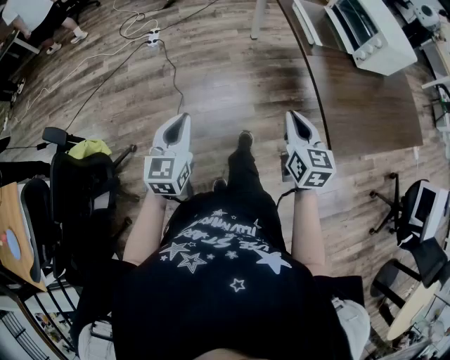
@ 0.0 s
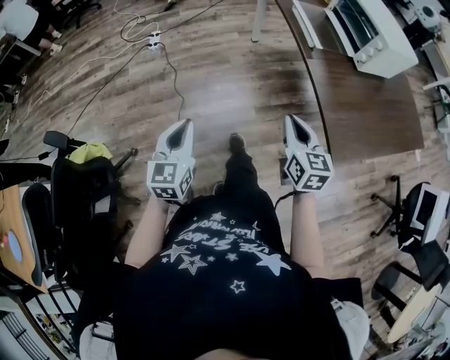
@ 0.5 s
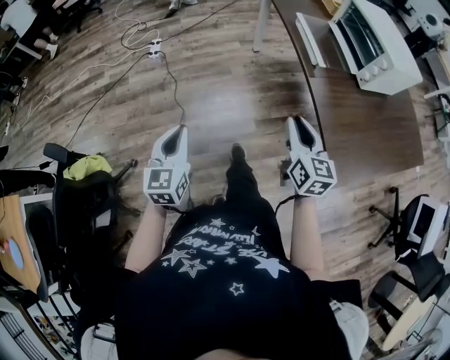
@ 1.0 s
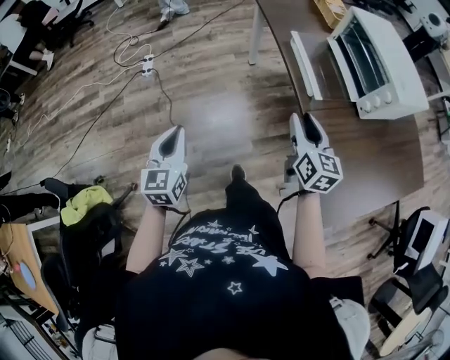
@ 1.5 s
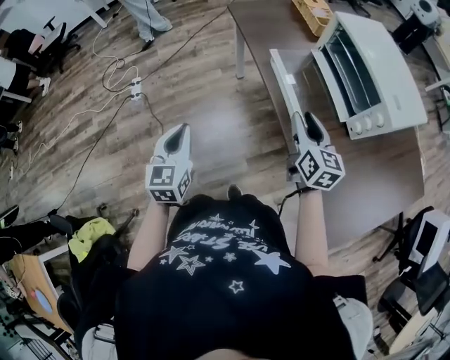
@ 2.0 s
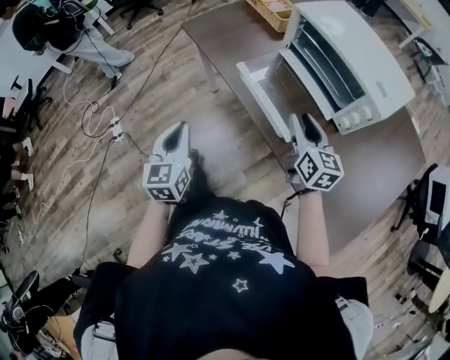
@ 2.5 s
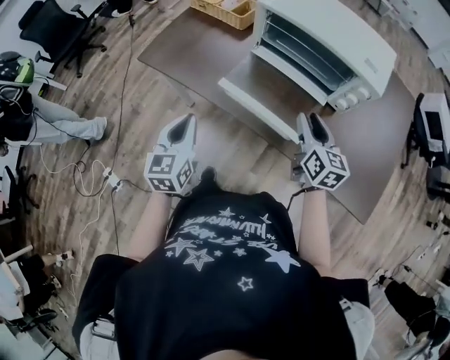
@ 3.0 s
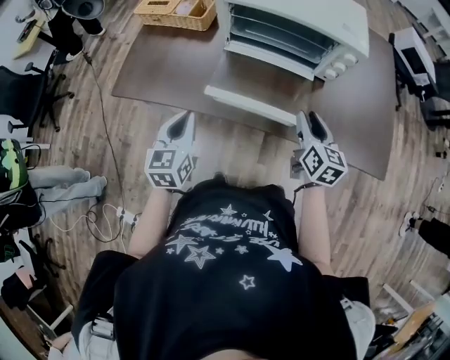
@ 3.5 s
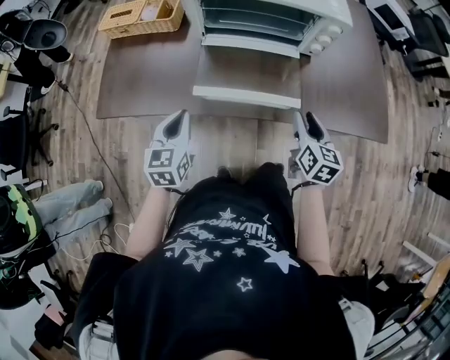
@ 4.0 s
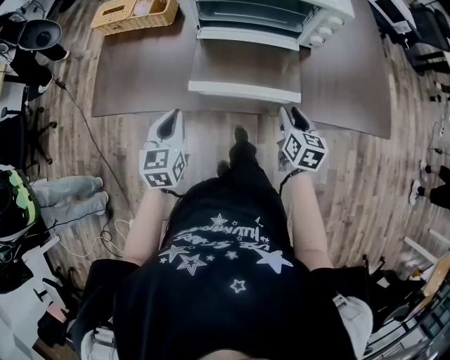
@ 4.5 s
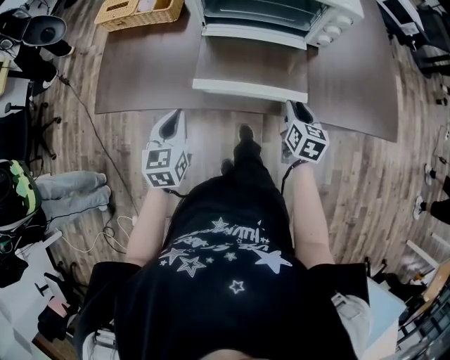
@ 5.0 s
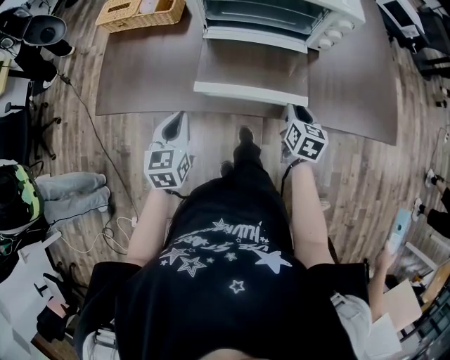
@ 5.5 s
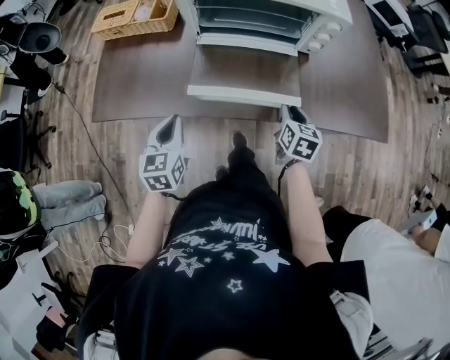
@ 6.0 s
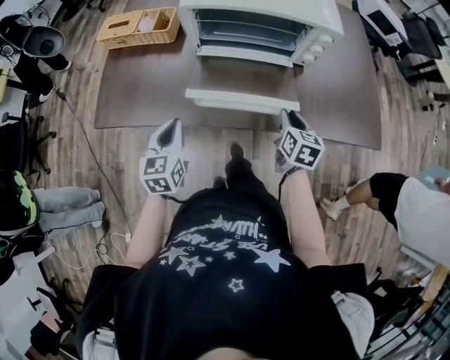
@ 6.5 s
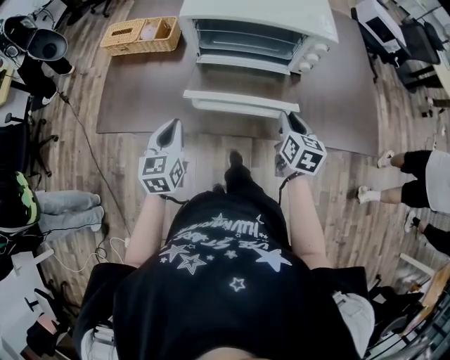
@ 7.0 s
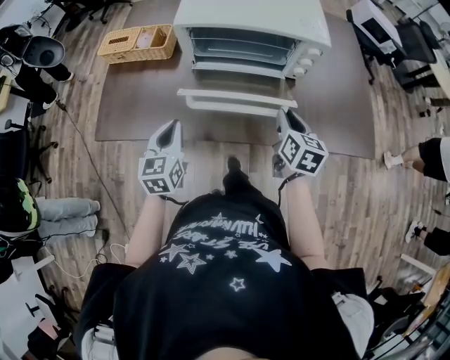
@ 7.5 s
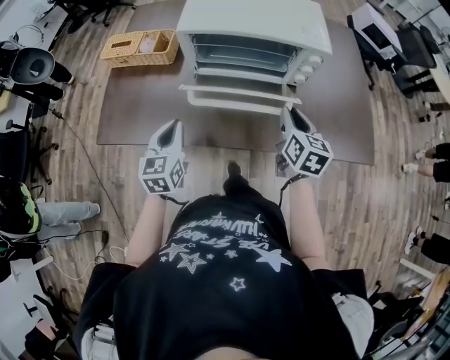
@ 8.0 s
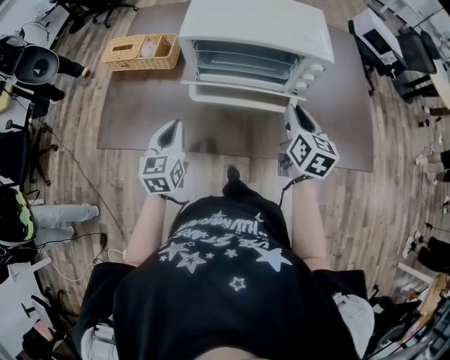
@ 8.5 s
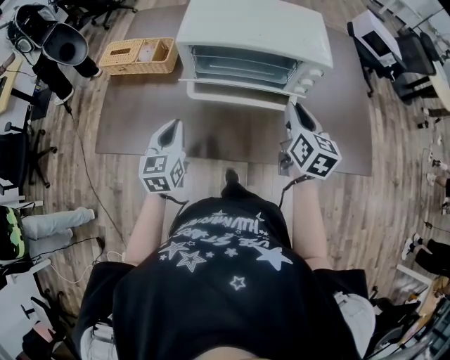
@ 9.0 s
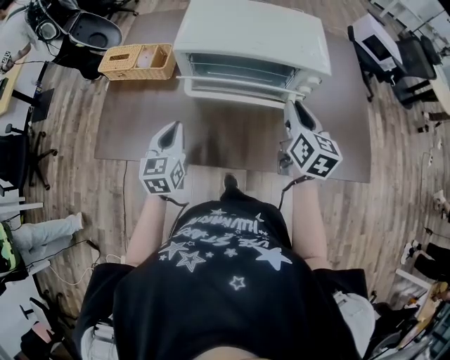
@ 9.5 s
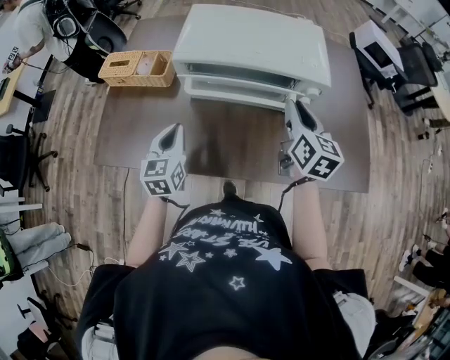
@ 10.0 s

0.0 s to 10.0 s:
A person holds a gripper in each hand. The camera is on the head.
0.0 to 2.0 s: The two grippers travel together, forward, approximately 40 cm. The right gripper opens its fingers.
2.0 to 4.0 s: The right gripper goes some 10 cm downward, and changes its angle by about 70 degrees, while the left gripper moves some 40 cm, and rotates approximately 70 degrees.
4.0 to 6.0 s: The right gripper goes approximately 5 cm downward.
6.0 to 8.0 s: The left gripper heads forward and upward, covering some 10 cm. The right gripper travels upward by about 15 cm.
8.0 to 10.0 s: The left gripper goes roughly 10 cm forward. Meanwhile the right gripper is displaced forward and upward by approximately 10 cm.

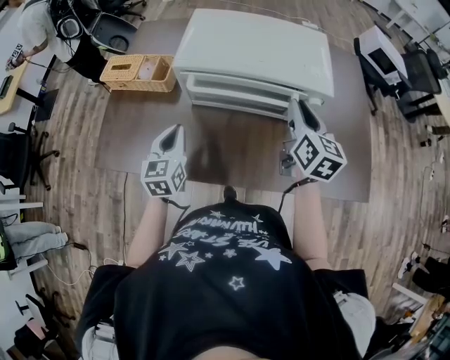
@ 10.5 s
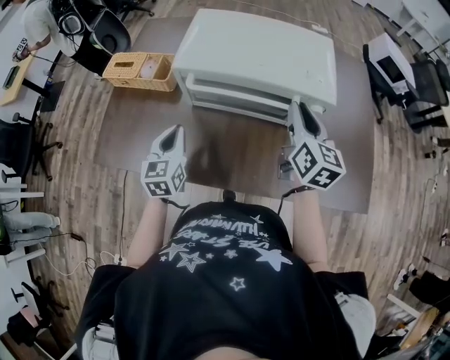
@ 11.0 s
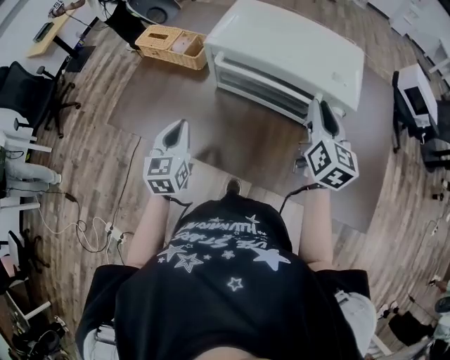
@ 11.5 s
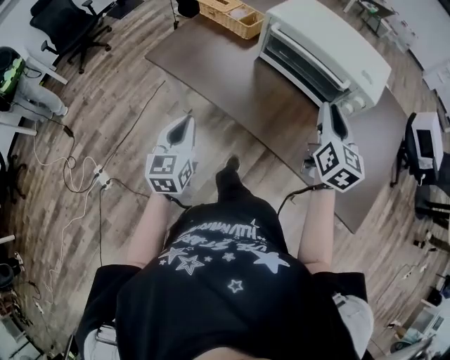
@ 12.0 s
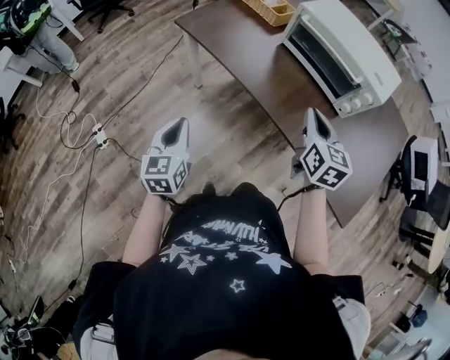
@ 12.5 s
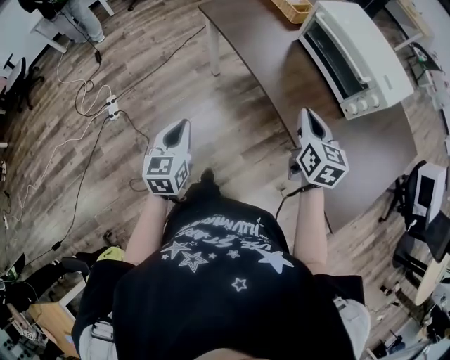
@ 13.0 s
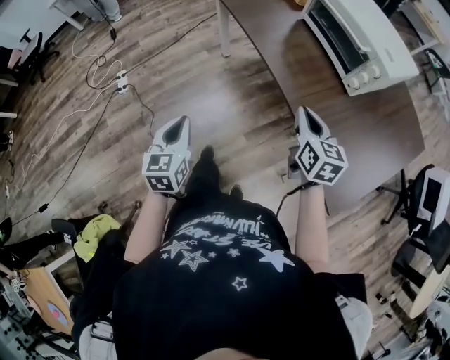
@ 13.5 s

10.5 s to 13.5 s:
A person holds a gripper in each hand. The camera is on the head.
10.5 to 12.0 s: The left gripper heads backward, covering about 25 cm, and swivels roughly 30 degrees. Meanwhile the right gripper travels backward by about 10 cm, and rotates some 20 degrees.
12.0 to 13.5 s: The left gripper moves approximately 35 cm, and rotates about 30 degrees. The right gripper changes place by about 20 cm, changes its angle by some 40 degrees, and closes its fingers.

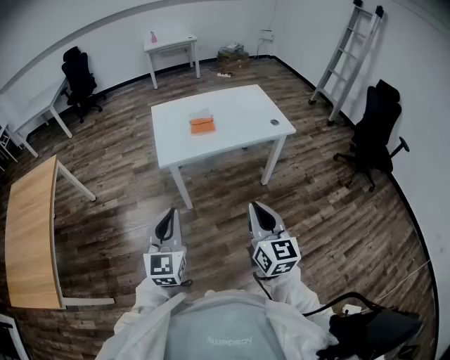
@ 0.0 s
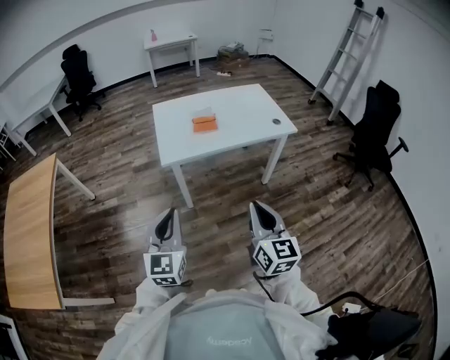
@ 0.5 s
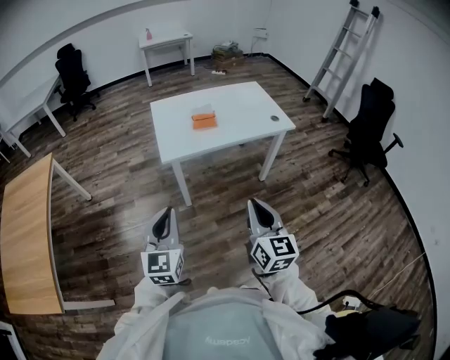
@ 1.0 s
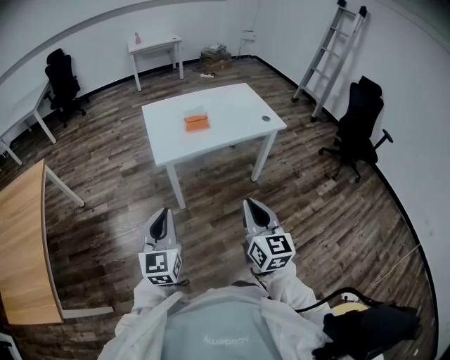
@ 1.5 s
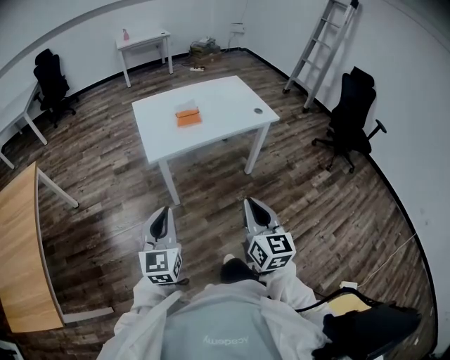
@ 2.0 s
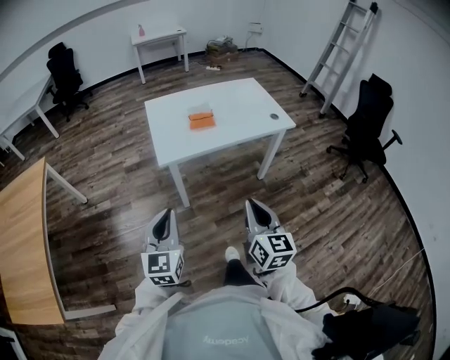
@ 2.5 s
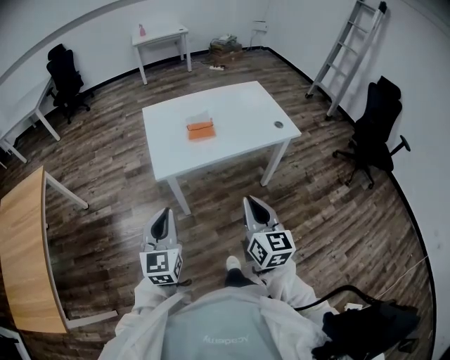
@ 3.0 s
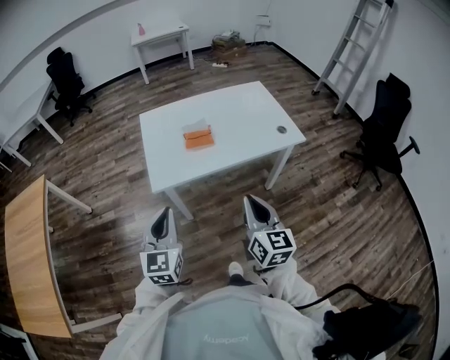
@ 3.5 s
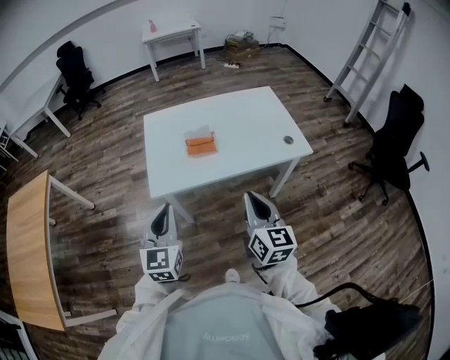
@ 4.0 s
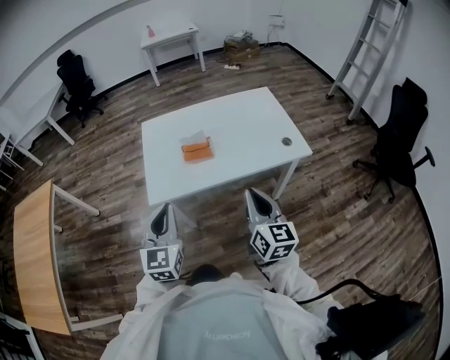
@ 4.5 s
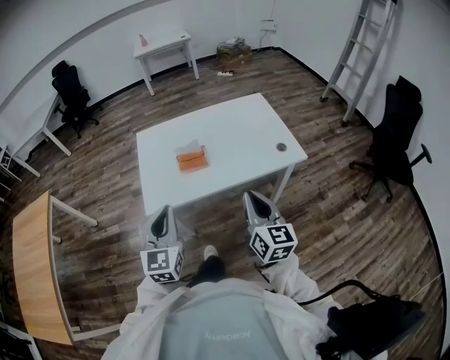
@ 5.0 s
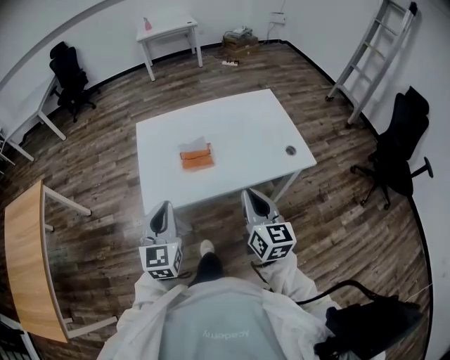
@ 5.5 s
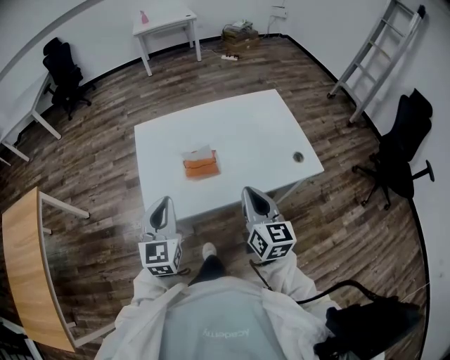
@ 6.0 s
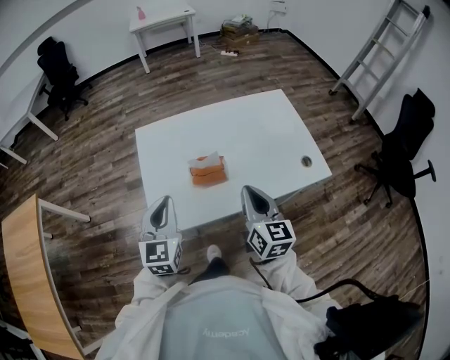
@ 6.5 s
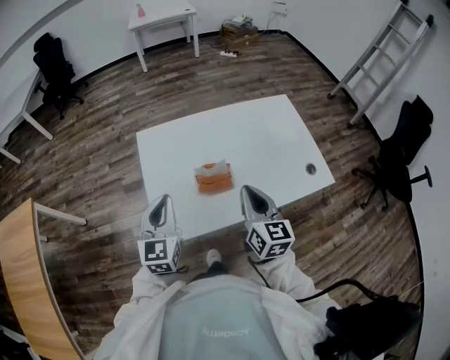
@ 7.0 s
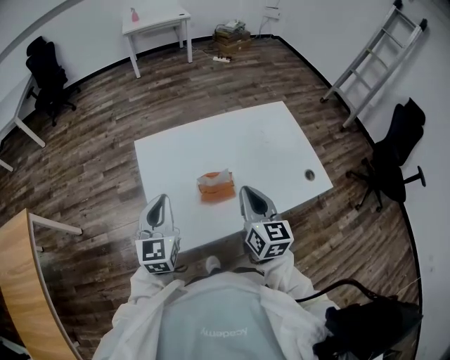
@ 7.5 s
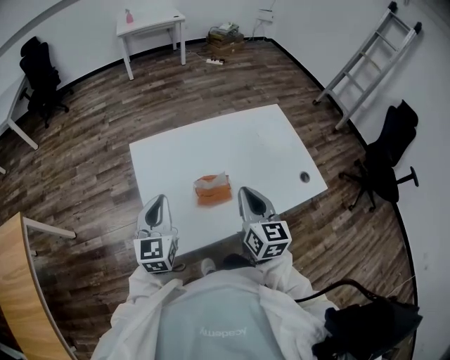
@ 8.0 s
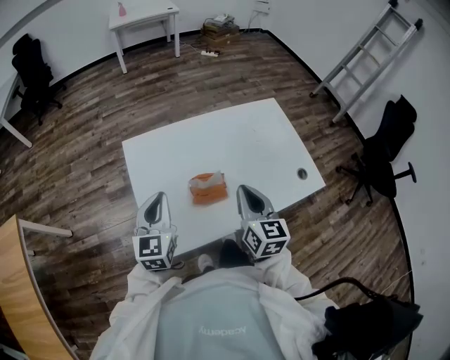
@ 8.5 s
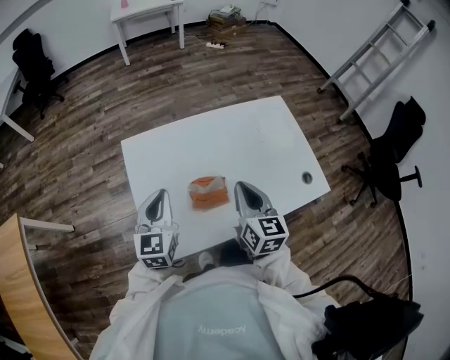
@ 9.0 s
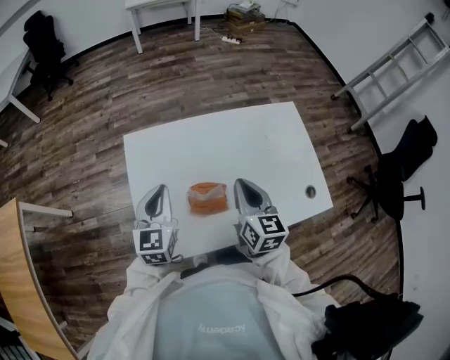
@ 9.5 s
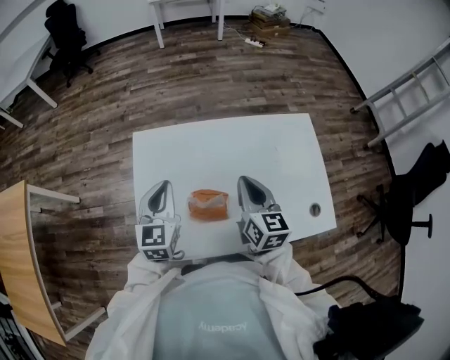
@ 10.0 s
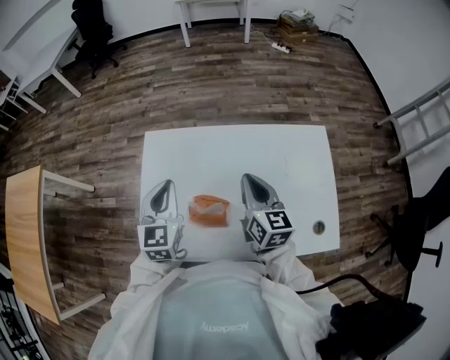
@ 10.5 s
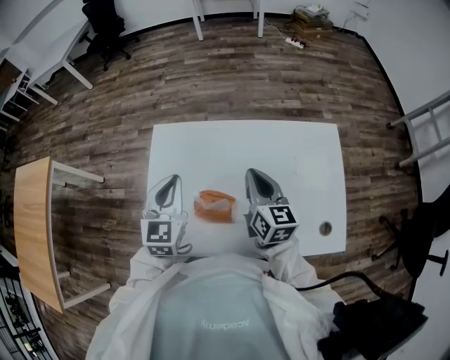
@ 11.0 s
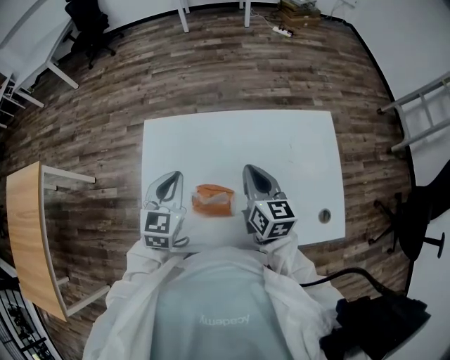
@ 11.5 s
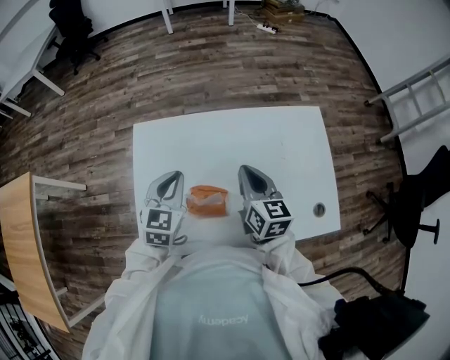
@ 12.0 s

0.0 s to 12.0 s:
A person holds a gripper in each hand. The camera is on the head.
0.0 to 2.0 s: The grippers stay close to where they were, moving slightly.
2.0 to 4.0 s: The two grippers go about 25 cm forward.
4.0 to 6.0 s: Both grippers travel together forward, roughly 15 cm.
6.0 to 8.0 s: The two grippers go roughly 15 cm forward and to the left.
8.0 to 10.0 s: Both grippers move forward, about 10 cm.
10.0 to 12.0 s: The left gripper changes place by about 5 cm.

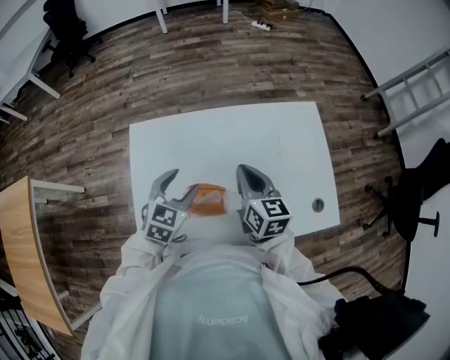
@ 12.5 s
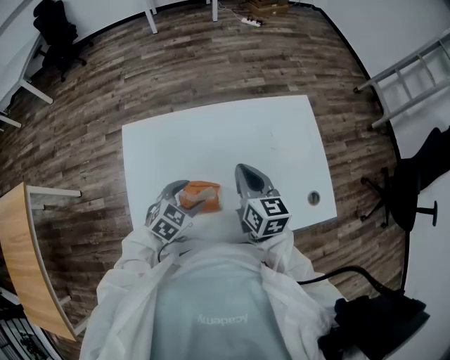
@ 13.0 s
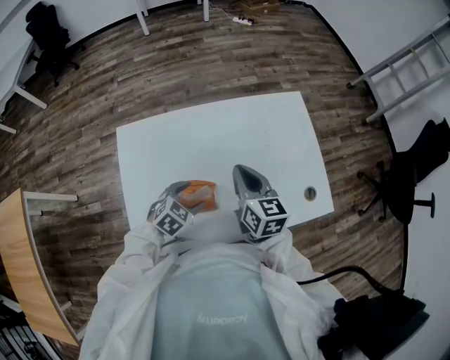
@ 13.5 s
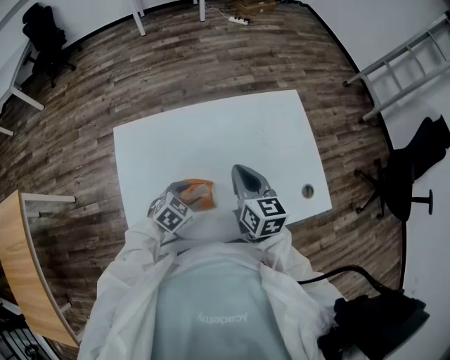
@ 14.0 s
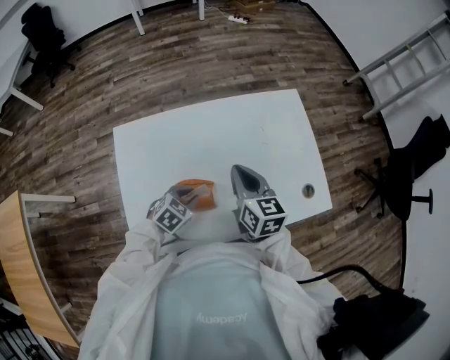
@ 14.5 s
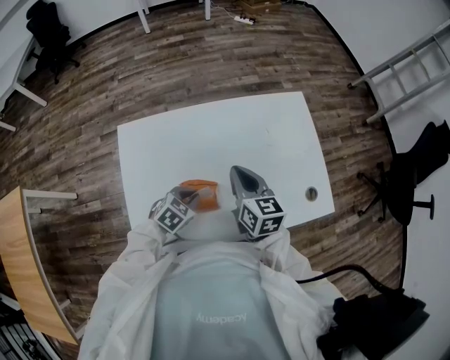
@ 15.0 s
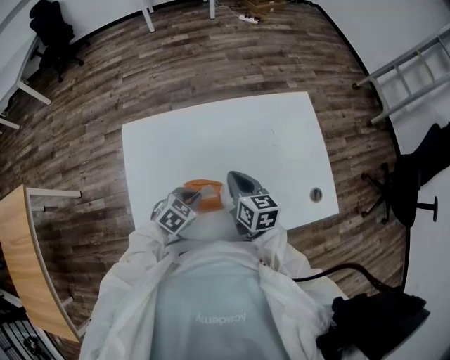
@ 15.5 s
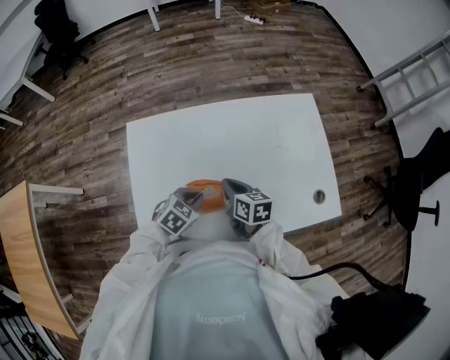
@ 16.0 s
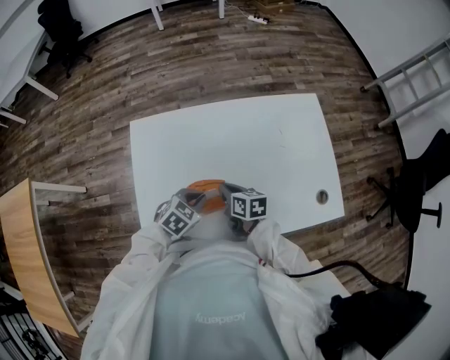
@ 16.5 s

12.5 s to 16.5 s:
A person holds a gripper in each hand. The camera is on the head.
12.5 to 14.5 s: The left gripper heads downward and to the right, covering about 15 cm, rotates approximately 30 degrees, and closes.
14.5 to 16.5 s: The right gripper moves downward and to the left, about 20 cm, and rotates roughly 30 degrees.
